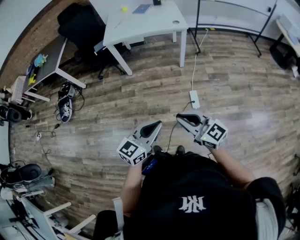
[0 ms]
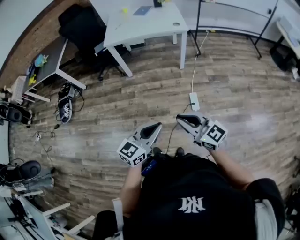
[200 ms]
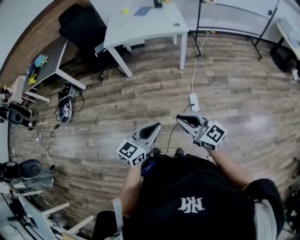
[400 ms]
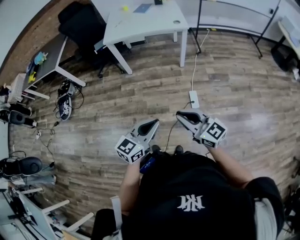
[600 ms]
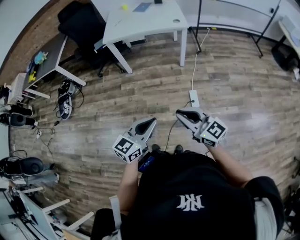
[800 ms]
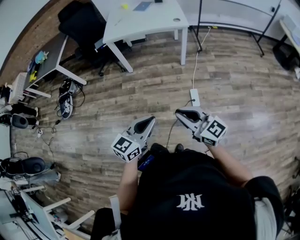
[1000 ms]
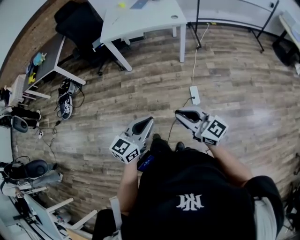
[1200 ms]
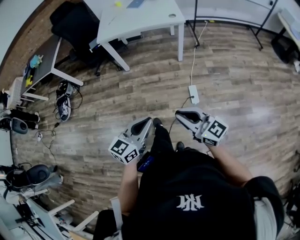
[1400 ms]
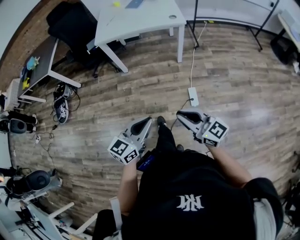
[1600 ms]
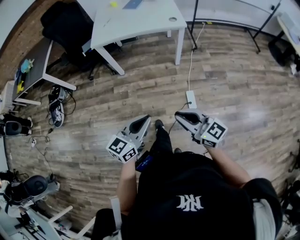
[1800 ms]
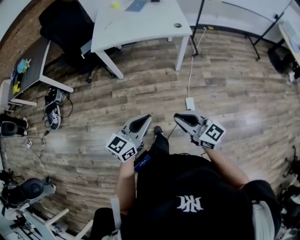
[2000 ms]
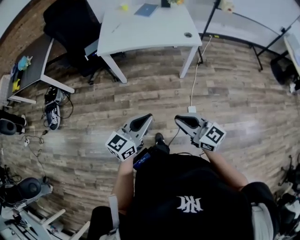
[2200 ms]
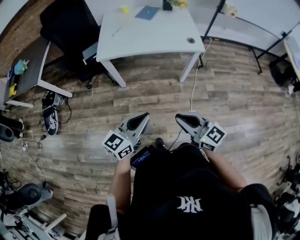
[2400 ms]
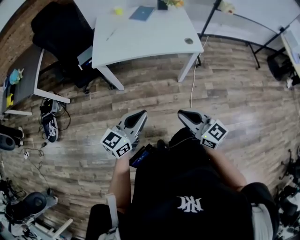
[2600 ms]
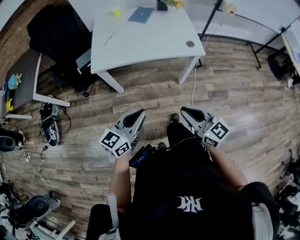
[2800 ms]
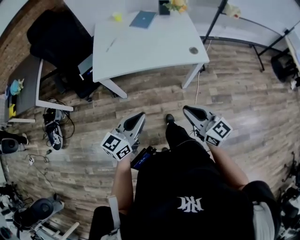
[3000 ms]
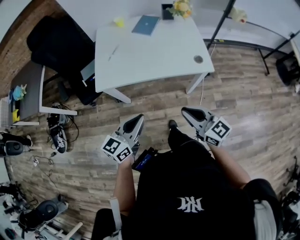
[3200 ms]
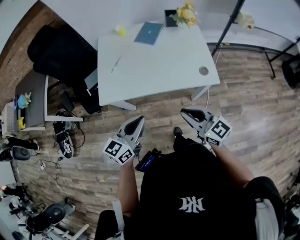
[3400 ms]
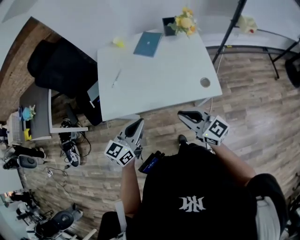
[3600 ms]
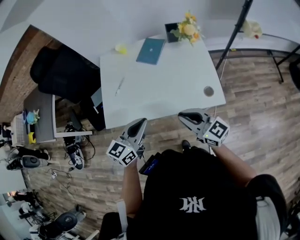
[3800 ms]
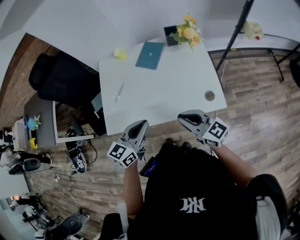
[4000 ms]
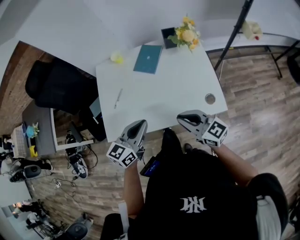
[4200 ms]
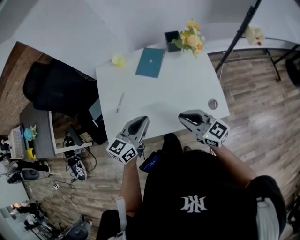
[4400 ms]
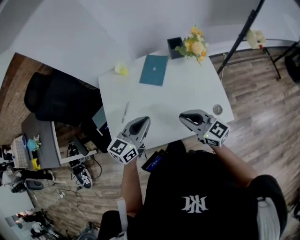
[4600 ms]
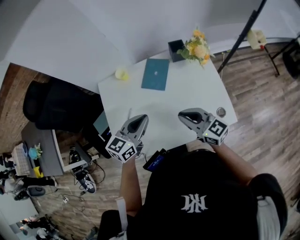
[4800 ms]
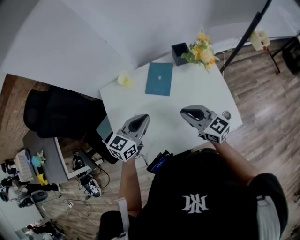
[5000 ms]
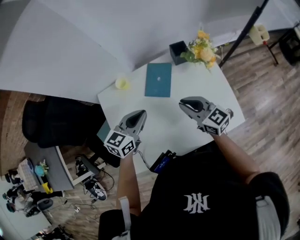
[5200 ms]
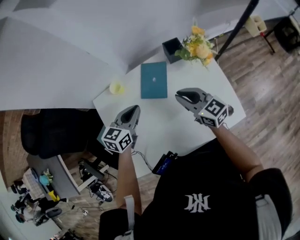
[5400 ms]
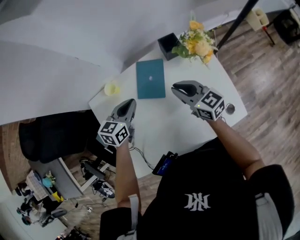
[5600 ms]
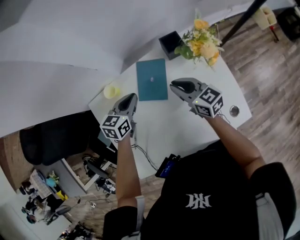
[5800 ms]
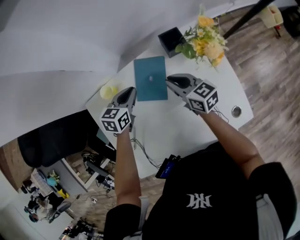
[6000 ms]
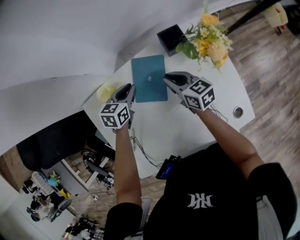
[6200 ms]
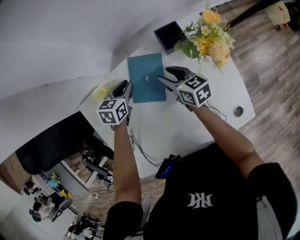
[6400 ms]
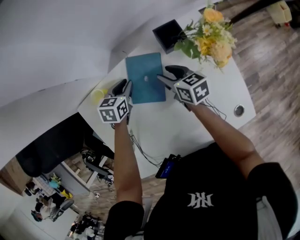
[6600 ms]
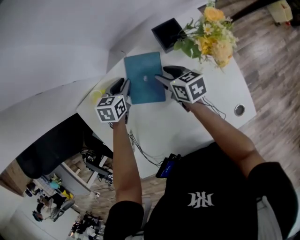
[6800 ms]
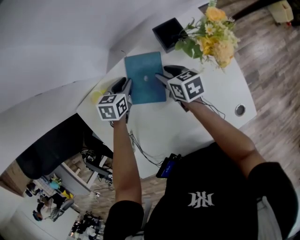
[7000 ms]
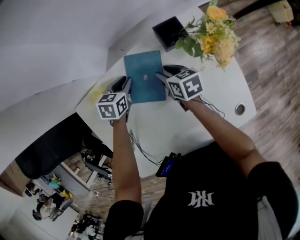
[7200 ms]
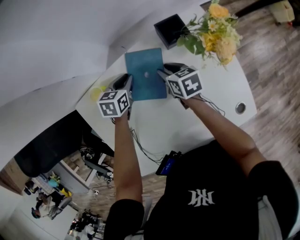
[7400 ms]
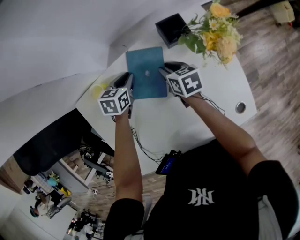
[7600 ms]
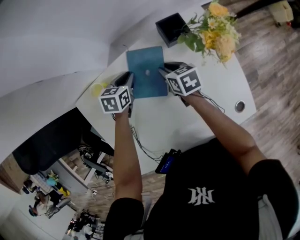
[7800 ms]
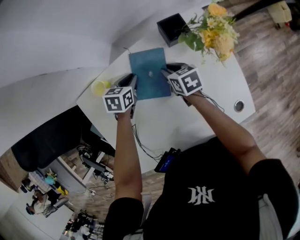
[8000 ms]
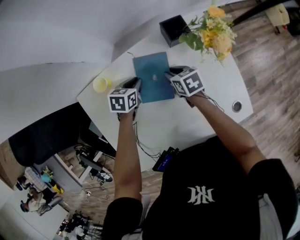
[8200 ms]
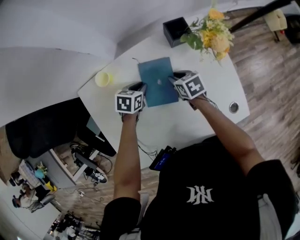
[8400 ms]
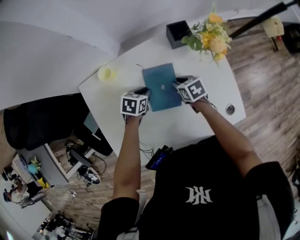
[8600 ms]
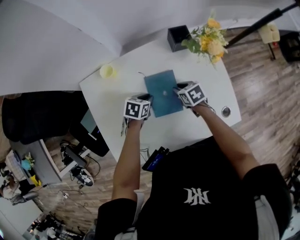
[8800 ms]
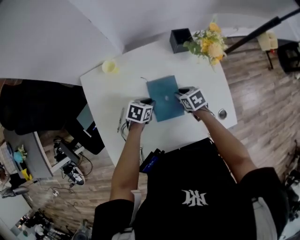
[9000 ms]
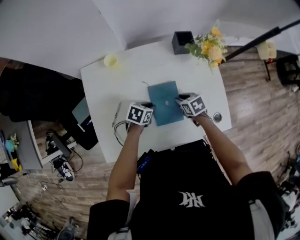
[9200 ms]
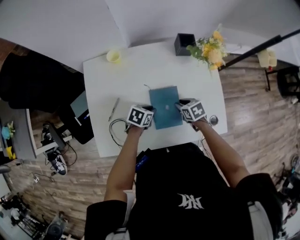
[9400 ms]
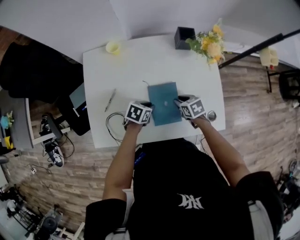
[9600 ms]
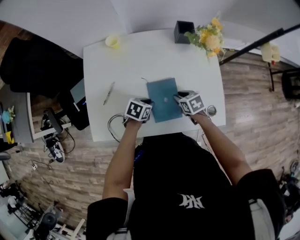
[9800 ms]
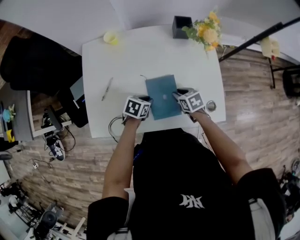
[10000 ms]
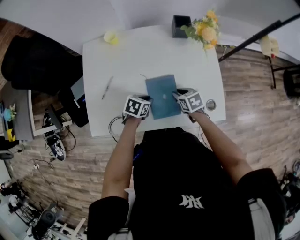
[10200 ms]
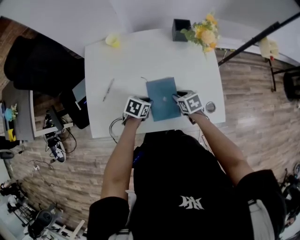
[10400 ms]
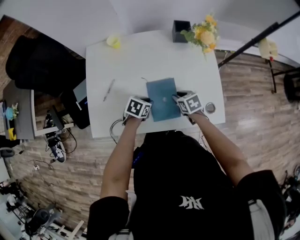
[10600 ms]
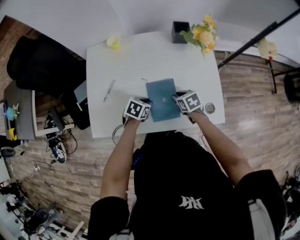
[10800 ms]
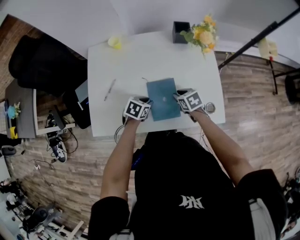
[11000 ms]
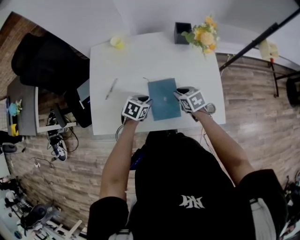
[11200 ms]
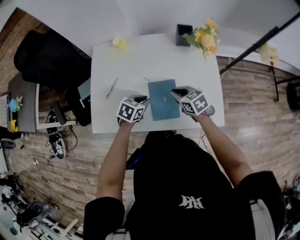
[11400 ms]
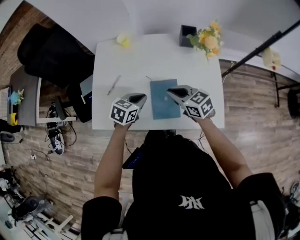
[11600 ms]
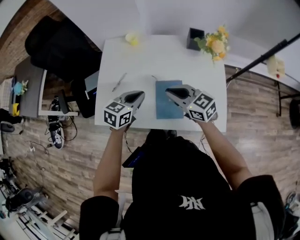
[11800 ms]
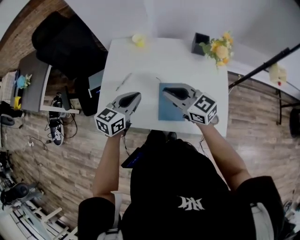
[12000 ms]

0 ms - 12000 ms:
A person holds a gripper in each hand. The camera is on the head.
0 ms - 1600 ms: The two grippers go approximately 10 cm forward.
1600 ms - 3000 ms: The pair of grippers is taken forward, approximately 40 cm.
3000 ms - 4400 ms: The grippers both shift forward by roughly 40 cm.
4400 ms - 6000 ms: The right gripper moves forward, roughly 35 cm, and rotates approximately 30 degrees. Meanwhile the left gripper moves forward and downward, about 40 cm, and turns by approximately 30 degrees.
6000 ms - 7600 ms: Both grippers move downward, some 10 cm. The right gripper turns by some 30 degrees.
7600 ms - 9000 ms: Both grippers move backward, about 15 cm. The right gripper swivels about 30 degrees.
9000 ms - 10400 ms: The two grippers go roughly 10 cm backward.
10400 ms - 12000 ms: The two grippers go roughly 25 cm upward. The right gripper tilts its fingers roughly 50 degrees upward; the left gripper tilts its fingers roughly 40 degrees upward.

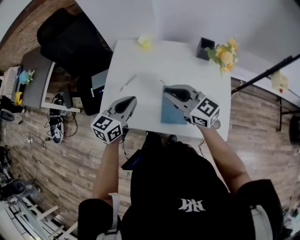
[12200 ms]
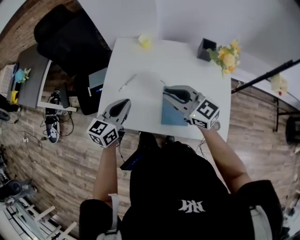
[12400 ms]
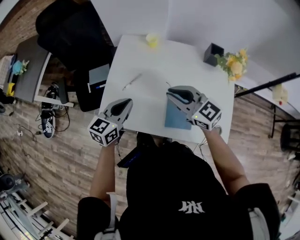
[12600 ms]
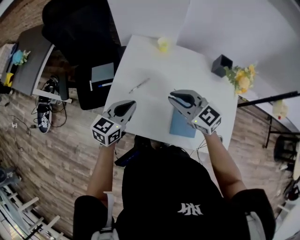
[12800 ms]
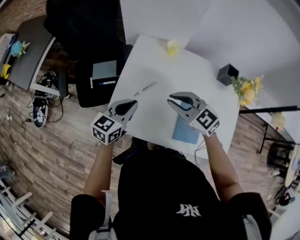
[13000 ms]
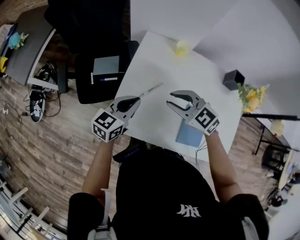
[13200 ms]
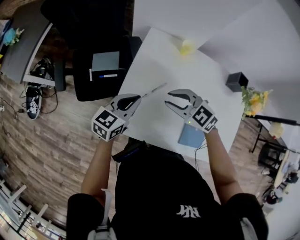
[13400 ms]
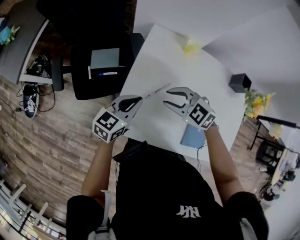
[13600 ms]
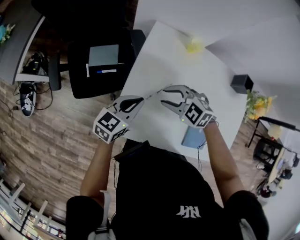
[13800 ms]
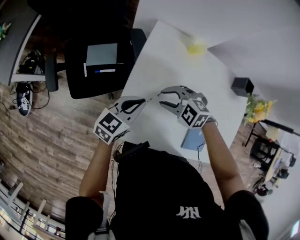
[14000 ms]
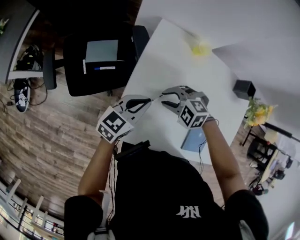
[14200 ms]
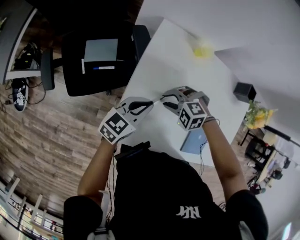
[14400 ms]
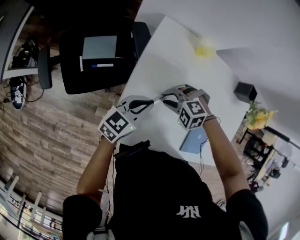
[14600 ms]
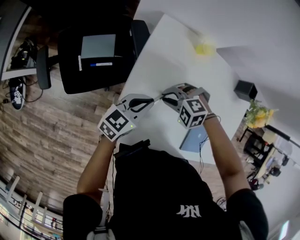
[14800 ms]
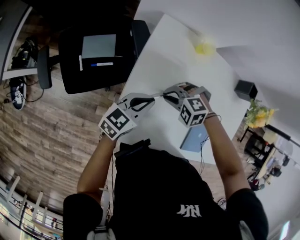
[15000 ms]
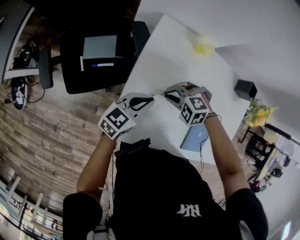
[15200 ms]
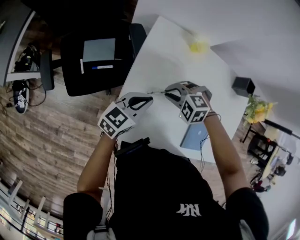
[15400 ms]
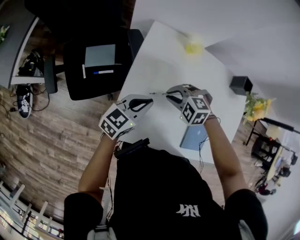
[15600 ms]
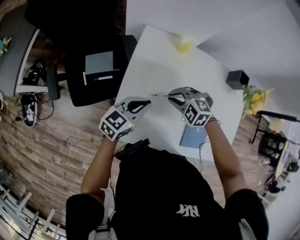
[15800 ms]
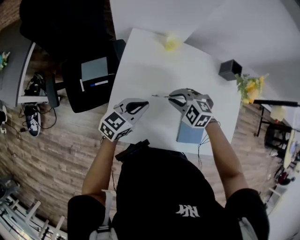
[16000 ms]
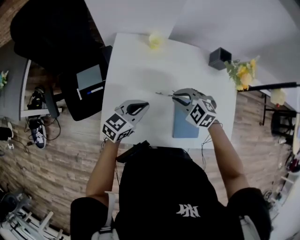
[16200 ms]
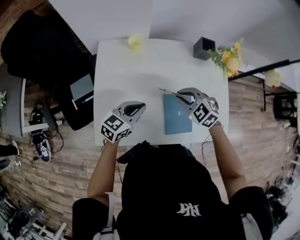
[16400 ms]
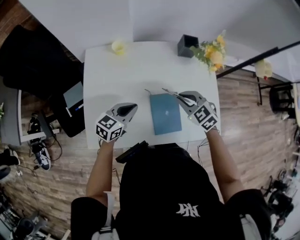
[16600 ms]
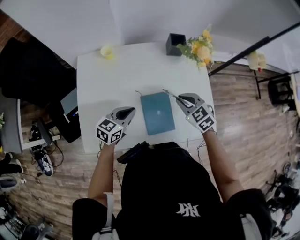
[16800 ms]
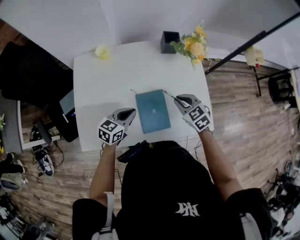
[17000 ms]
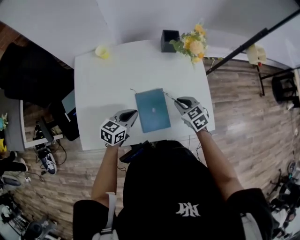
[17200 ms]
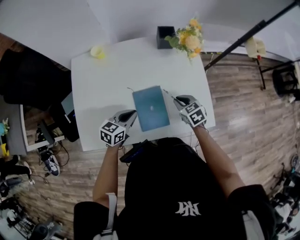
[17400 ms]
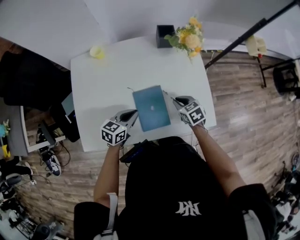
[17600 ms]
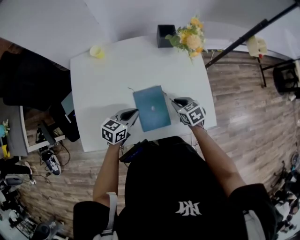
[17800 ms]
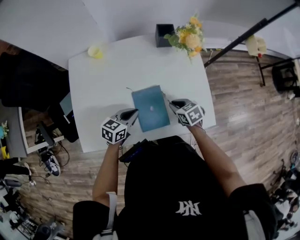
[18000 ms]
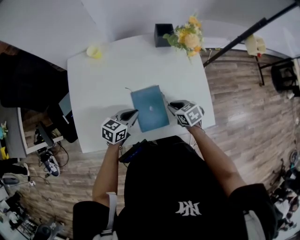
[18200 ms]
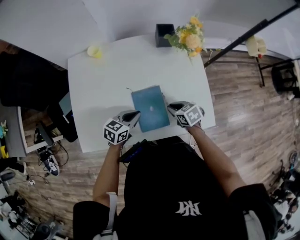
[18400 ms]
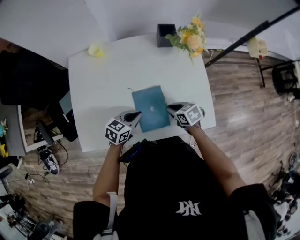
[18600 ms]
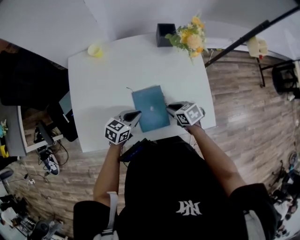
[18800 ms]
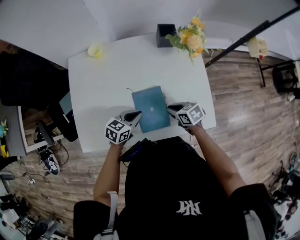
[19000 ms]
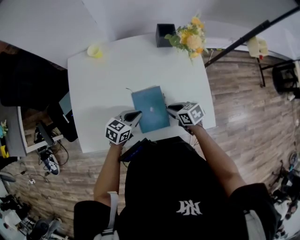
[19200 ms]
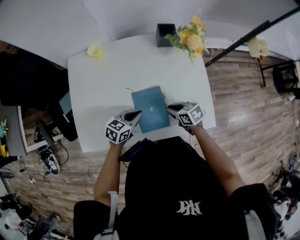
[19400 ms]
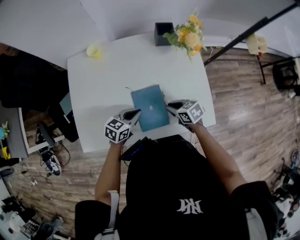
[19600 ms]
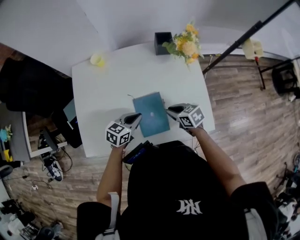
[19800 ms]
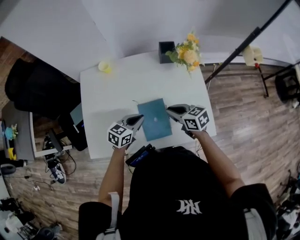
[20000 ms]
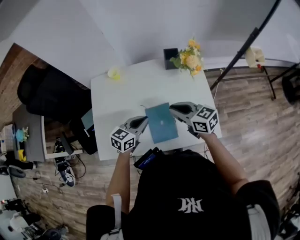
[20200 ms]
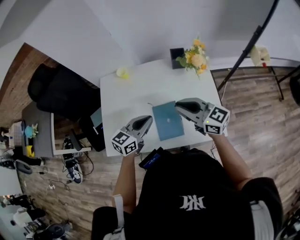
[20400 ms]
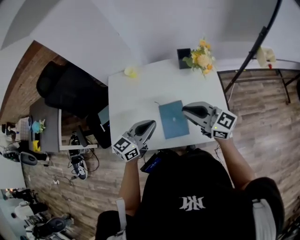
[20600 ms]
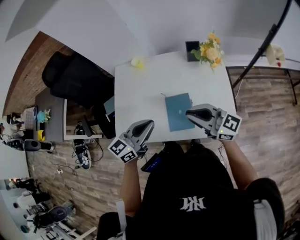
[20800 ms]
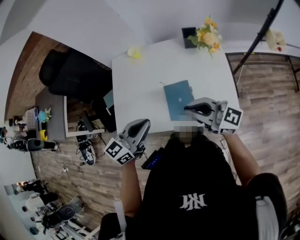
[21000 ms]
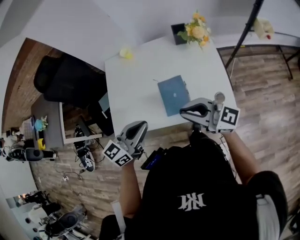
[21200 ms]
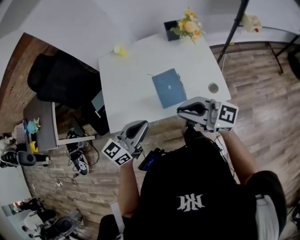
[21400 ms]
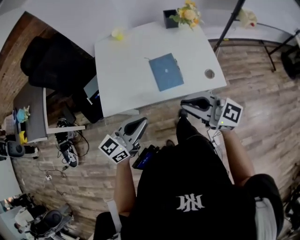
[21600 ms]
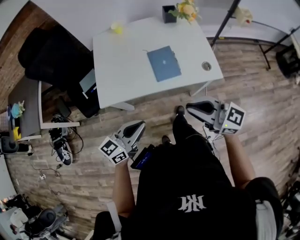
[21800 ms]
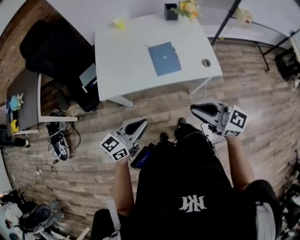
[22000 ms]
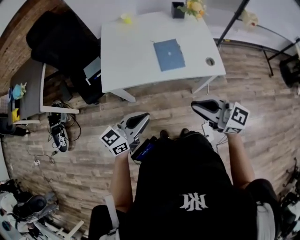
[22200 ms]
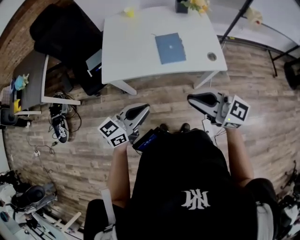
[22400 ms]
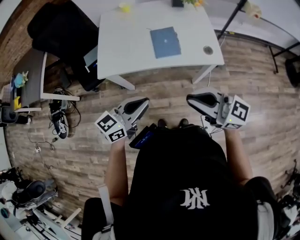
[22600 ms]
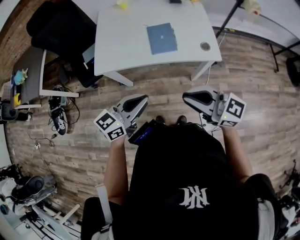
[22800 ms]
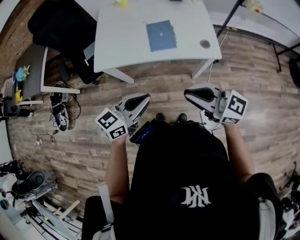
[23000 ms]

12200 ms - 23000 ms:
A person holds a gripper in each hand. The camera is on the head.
12200 ms - 13800 ms: The left gripper moves some 25 cm. Meanwhile the right gripper moves about 35 cm, points its fingers roughly 40 degrees further downward, and opens up.
13800 ms - 15200 ms: The right gripper moves downward, about 10 cm, and changes its angle by roughly 20 degrees; the left gripper changes place by about 5 cm.
15200 ms - 16800 ms: The left gripper shifts by about 25 cm, while the right gripper changes place by about 40 cm, and changes its angle by approximately 70 degrees.
16800 ms - 18400 ms: The left gripper moves to the right and downward, about 10 cm. The right gripper moves downward and backward, roughly 15 cm, and turns by approximately 30 degrees.
18400 ms - 20000 ms: The left gripper shifts some 5 cm upward. Meanwhile the right gripper goes about 10 cm upward, and swivels about 20 degrees.
20000 ms - 21400 ms: Both grippers move backward and upward, about 25 cm. The right gripper points its fingers approximately 40 degrees further upward. The left gripper turns by some 20 degrees.
21400 ms - 23000 ms: The two grippers go approximately 20 cm backward.

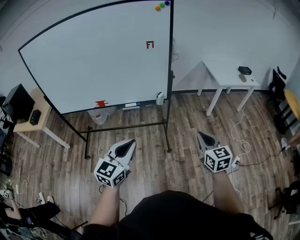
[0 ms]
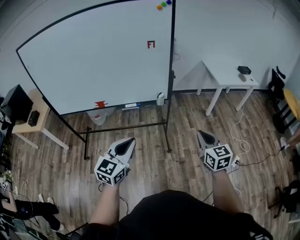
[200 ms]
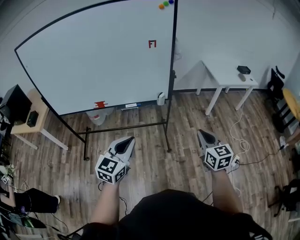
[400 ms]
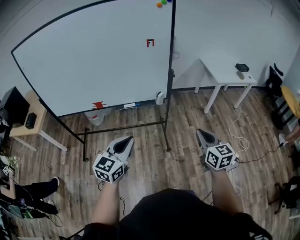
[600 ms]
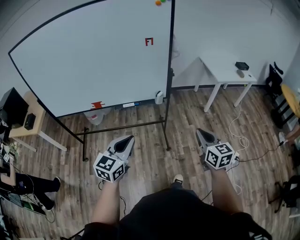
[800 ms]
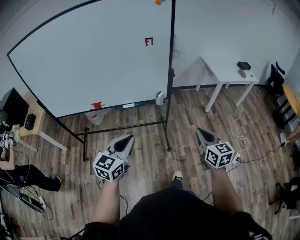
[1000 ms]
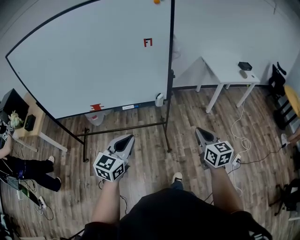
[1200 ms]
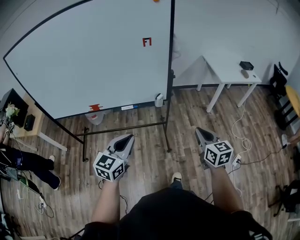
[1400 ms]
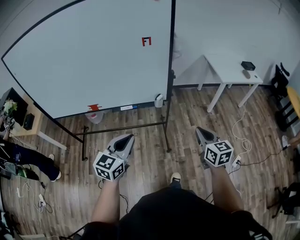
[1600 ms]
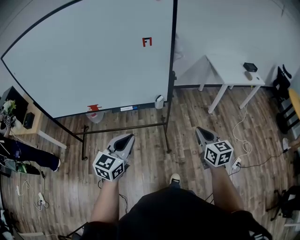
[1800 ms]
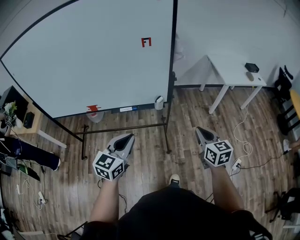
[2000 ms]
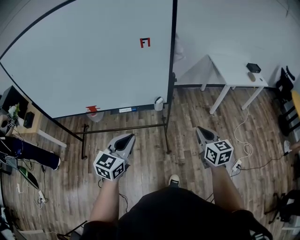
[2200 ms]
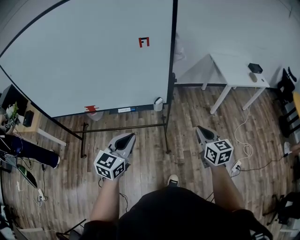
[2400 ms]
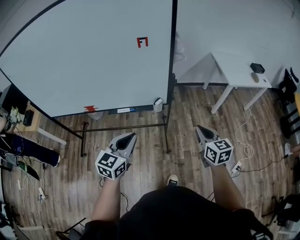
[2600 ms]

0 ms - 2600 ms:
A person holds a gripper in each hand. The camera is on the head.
0 ms - 1200 ms: Both grippers travel together forward, some 10 cm.
1200 ms - 2600 ms: Both grippers travel together forward, about 15 cm.
